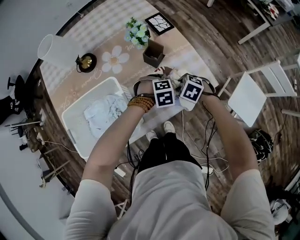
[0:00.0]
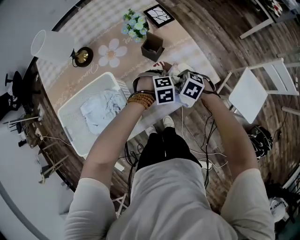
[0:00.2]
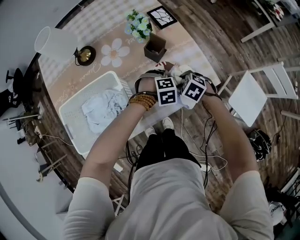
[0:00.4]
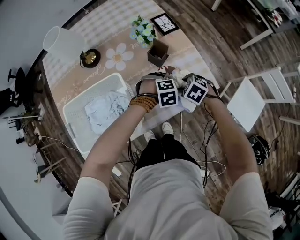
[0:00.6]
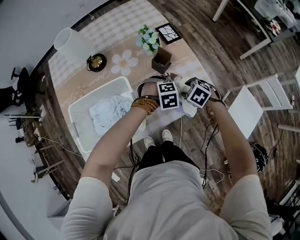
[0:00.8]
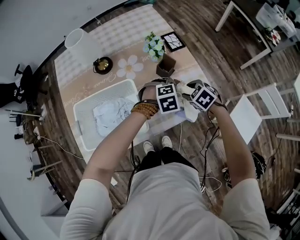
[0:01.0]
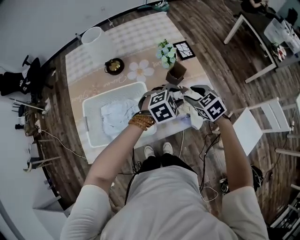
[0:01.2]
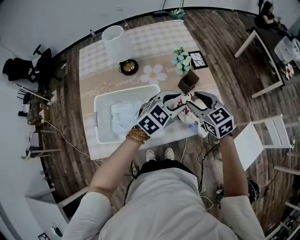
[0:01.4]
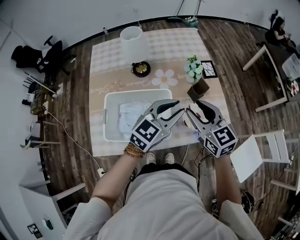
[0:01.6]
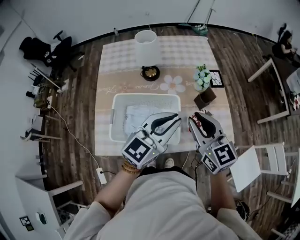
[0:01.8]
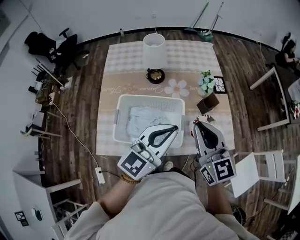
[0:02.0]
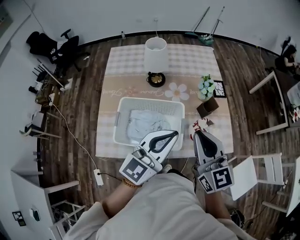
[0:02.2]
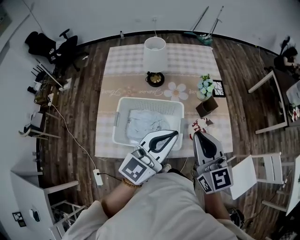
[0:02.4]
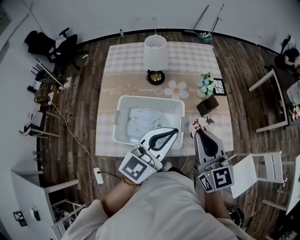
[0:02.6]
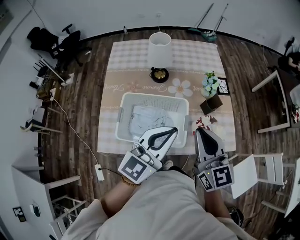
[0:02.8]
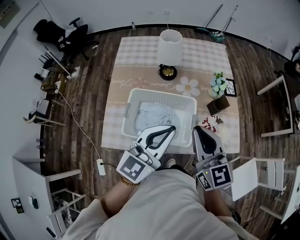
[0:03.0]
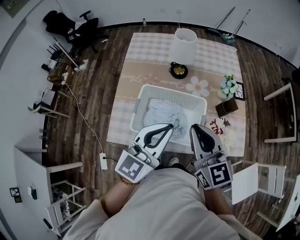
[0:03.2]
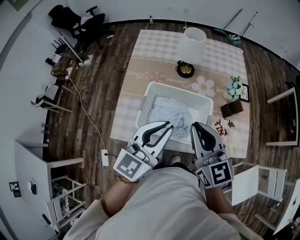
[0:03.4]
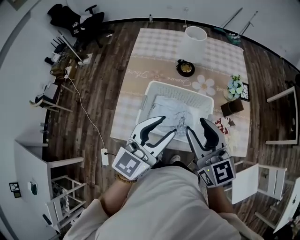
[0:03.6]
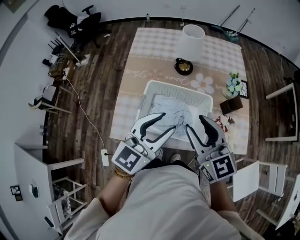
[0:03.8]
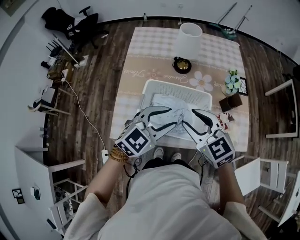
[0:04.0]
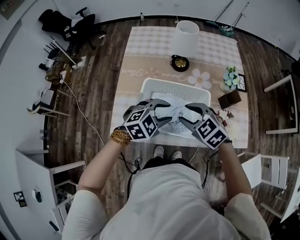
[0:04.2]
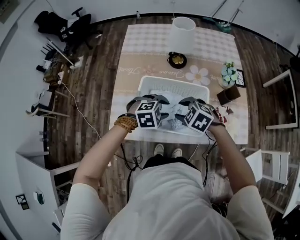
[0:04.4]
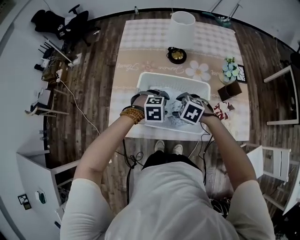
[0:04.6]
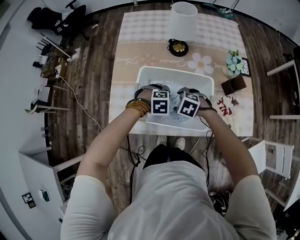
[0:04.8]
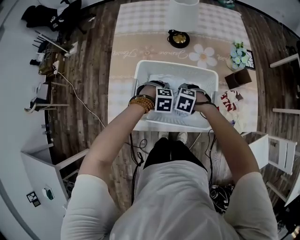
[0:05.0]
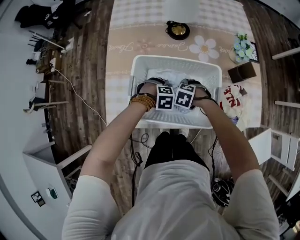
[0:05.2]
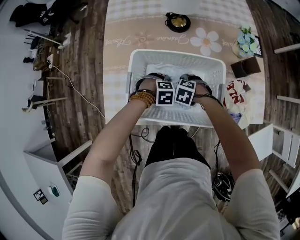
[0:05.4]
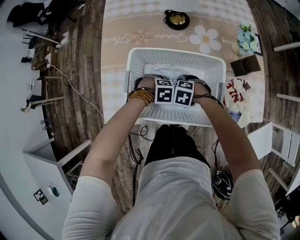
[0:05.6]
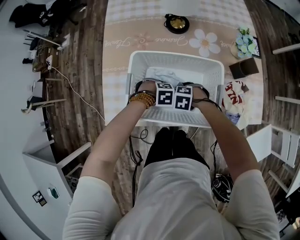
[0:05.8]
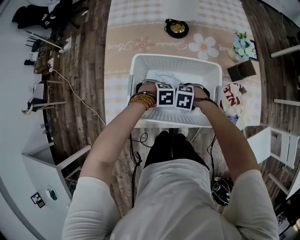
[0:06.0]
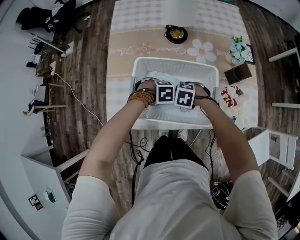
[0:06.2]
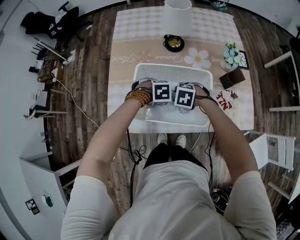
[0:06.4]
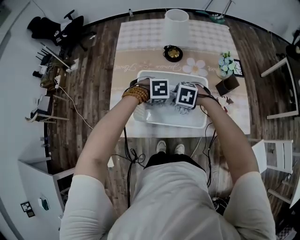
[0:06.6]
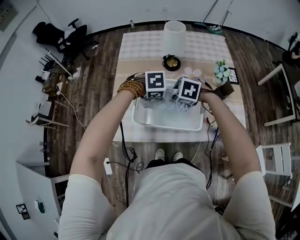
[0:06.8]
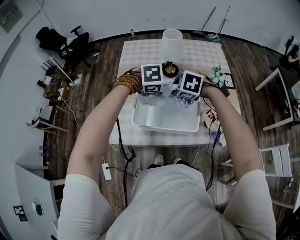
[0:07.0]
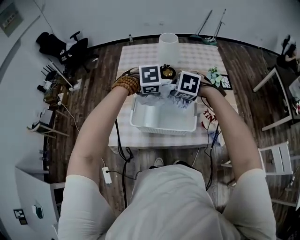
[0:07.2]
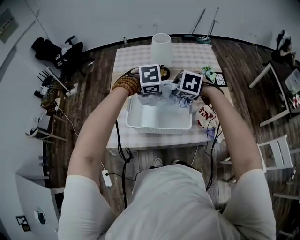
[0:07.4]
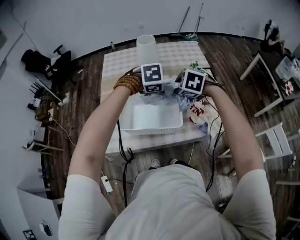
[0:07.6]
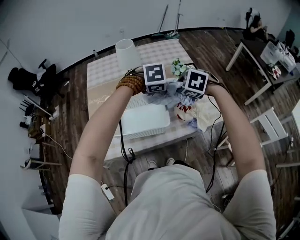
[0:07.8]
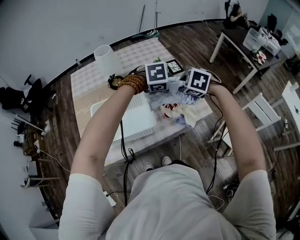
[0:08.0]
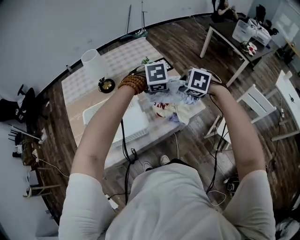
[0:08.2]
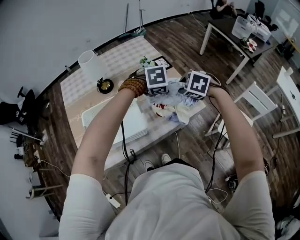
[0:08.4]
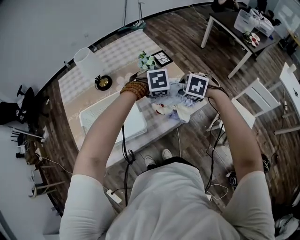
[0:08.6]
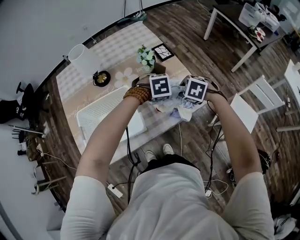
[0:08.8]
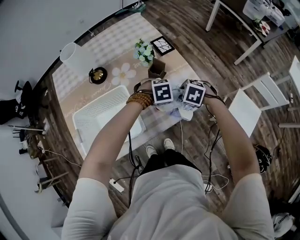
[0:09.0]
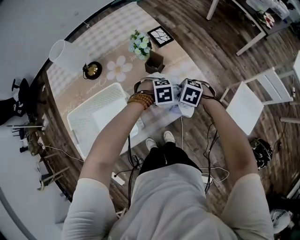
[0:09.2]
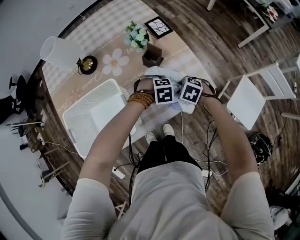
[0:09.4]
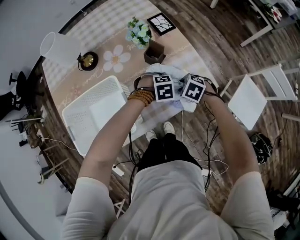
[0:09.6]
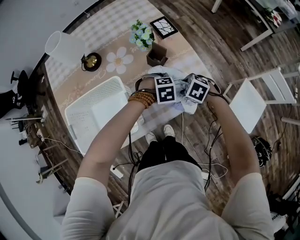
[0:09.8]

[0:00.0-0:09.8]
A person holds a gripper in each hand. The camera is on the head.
0:00.0 to 0:01.4: Both grippers move upward, roughly 25 cm. The left gripper points its fingers some 50 degrees further upward. Meanwhile the right gripper tilts its fingers about 40 degrees upward.
0:01.4 to 0:02.8: The left gripper goes approximately 25 cm to the left, upward and backward, rotates roughly 40 degrees, and closes its fingers; the right gripper is displaced upward, to the left and backward by roughly 20 cm, changes its angle by some 30 degrees, and closes.
0:02.8 to 0:04.2: The right gripper goes roughly 20 cm to the left and downward, angles its fingers downward, by approximately 40 degrees, and opens; the left gripper heads downward and to the left, covering roughly 20 cm, angles its fingers downward, by some 40 degrees, and opens up.
0:04.2 to 0:05.6: The grippers both shift downward by roughly 30 cm. The left gripper points its fingers approximately 30 degrees further downward. Meanwhile the right gripper tips its fingers downward by roughly 30 degrees, and opens its fingers.
0:05.6 to 0:07.0: The grippers both shift upward by some 30 cm. The left gripper closes. The right gripper closes.
0:07.0 to 0:08.4: The right gripper moves approximately 35 cm, and changes its angle by roughly 30 degrees. The left gripper shifts by about 35 cm, and changes its angle by roughly 30 degrees.
0:08.4 to 0:09.8: The two grippers go approximately 25 cm downward.

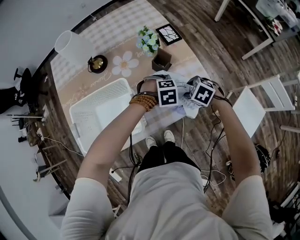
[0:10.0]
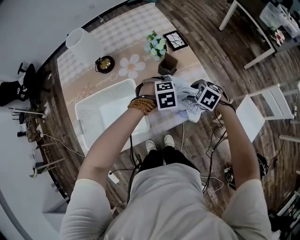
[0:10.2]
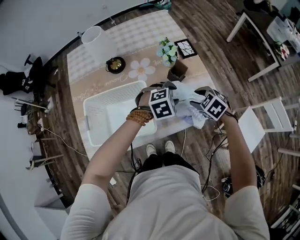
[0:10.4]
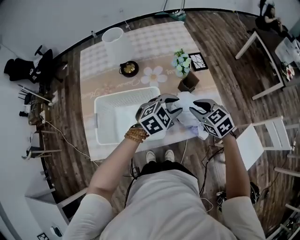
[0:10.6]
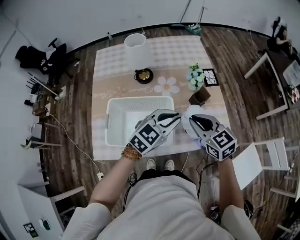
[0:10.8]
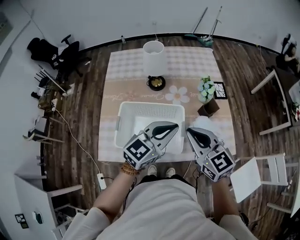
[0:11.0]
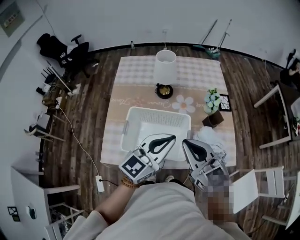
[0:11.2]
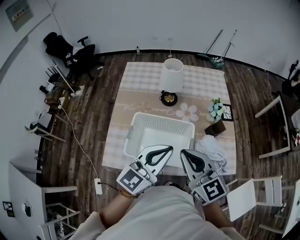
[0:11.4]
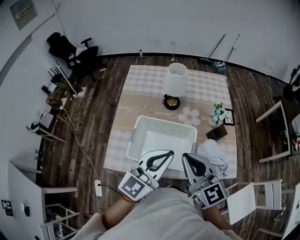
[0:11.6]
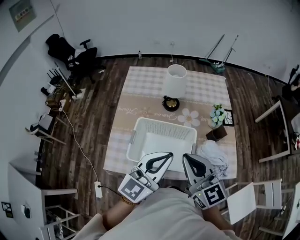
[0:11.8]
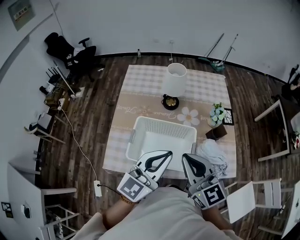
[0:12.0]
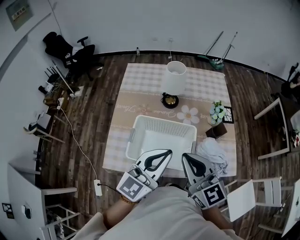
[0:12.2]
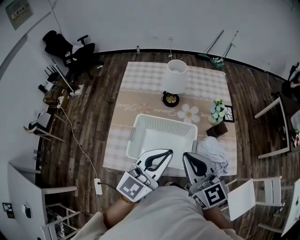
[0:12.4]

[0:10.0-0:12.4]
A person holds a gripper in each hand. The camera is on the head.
0:10.0 to 0:11.2: The grippers both shift upward by roughly 30 cm. The left gripper angles its fingers upward, by some 80 degrees, and closes up. Meanwhile the right gripper points its fingers some 60 degrees further upward, and closes up.
0:11.2 to 0:12.4: The left gripper travels to the left by roughly 5 cm.

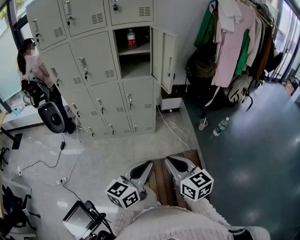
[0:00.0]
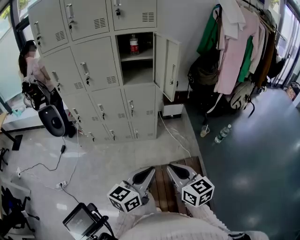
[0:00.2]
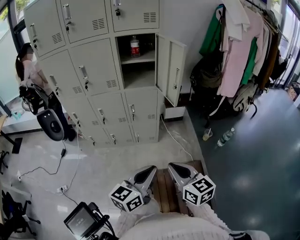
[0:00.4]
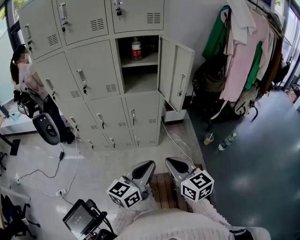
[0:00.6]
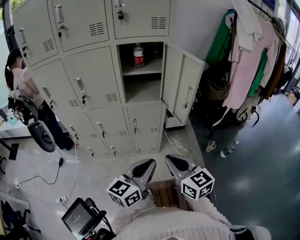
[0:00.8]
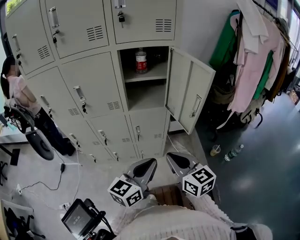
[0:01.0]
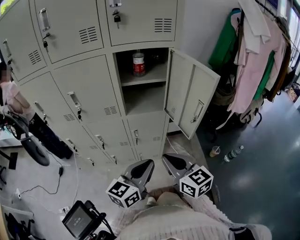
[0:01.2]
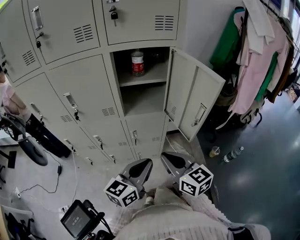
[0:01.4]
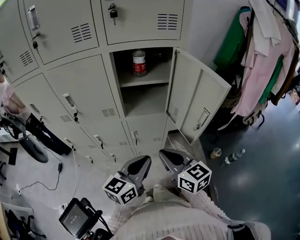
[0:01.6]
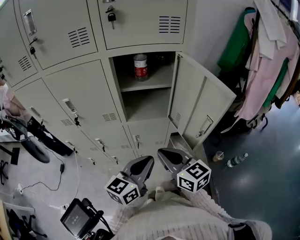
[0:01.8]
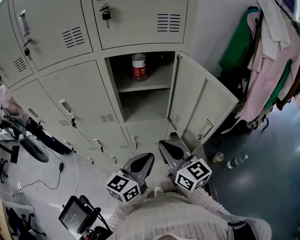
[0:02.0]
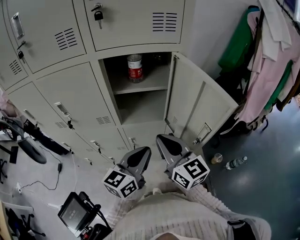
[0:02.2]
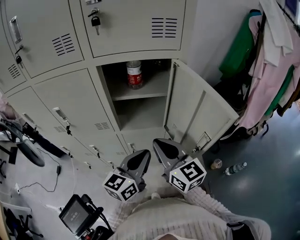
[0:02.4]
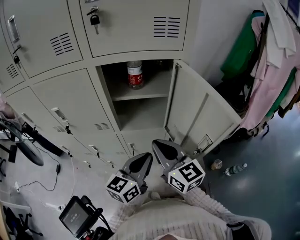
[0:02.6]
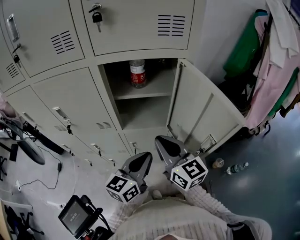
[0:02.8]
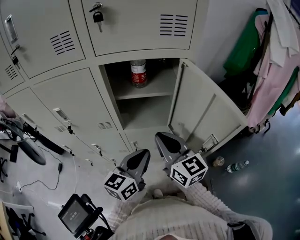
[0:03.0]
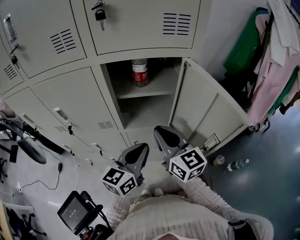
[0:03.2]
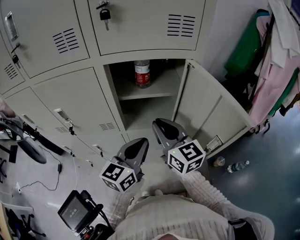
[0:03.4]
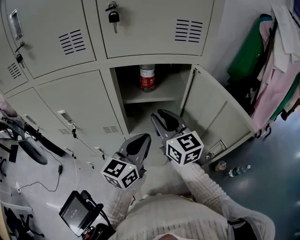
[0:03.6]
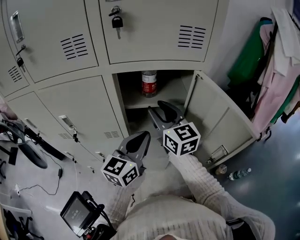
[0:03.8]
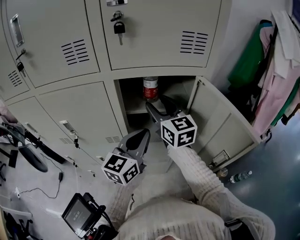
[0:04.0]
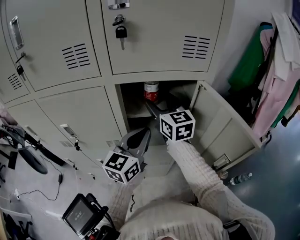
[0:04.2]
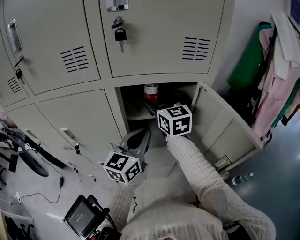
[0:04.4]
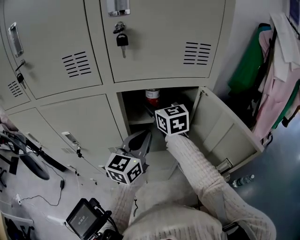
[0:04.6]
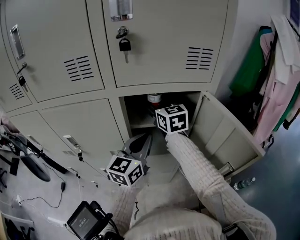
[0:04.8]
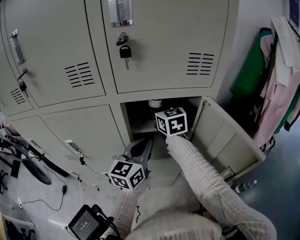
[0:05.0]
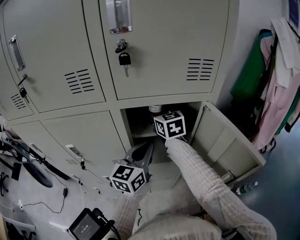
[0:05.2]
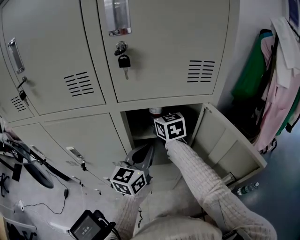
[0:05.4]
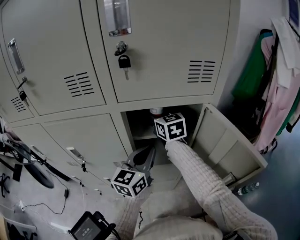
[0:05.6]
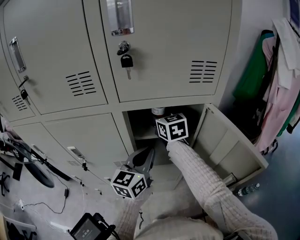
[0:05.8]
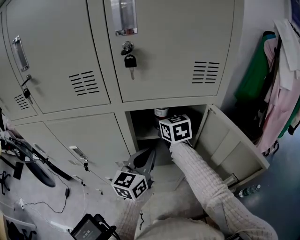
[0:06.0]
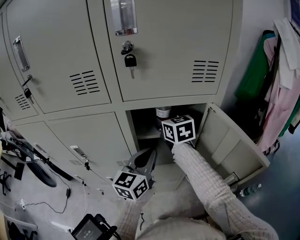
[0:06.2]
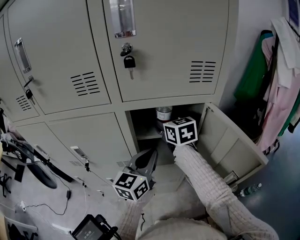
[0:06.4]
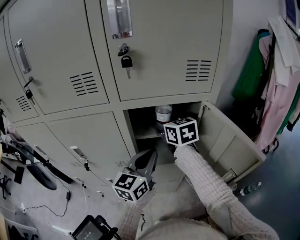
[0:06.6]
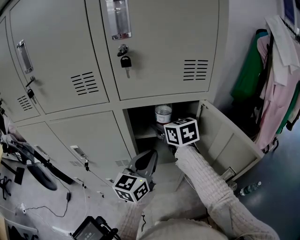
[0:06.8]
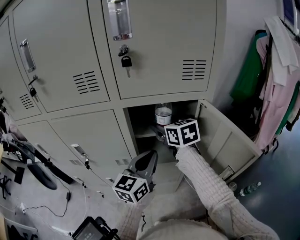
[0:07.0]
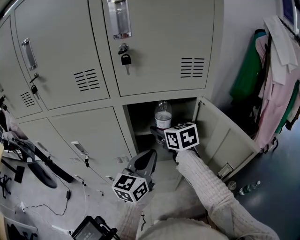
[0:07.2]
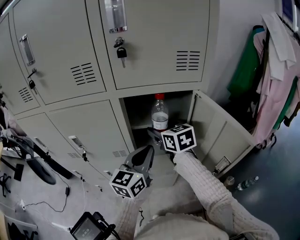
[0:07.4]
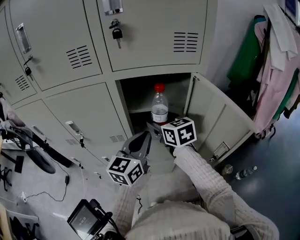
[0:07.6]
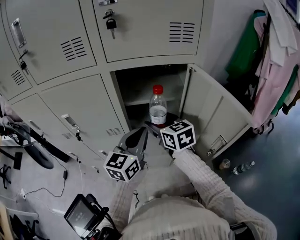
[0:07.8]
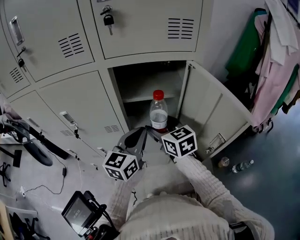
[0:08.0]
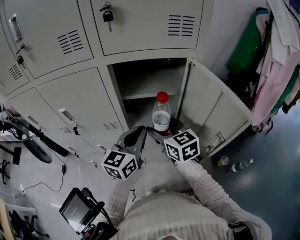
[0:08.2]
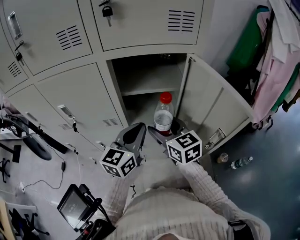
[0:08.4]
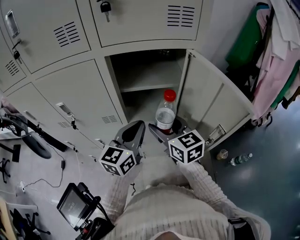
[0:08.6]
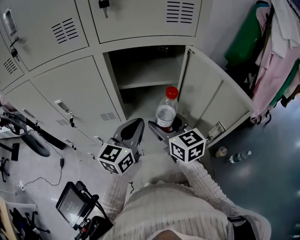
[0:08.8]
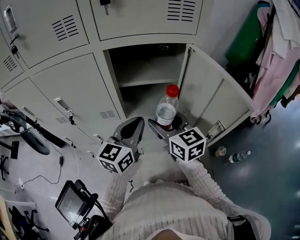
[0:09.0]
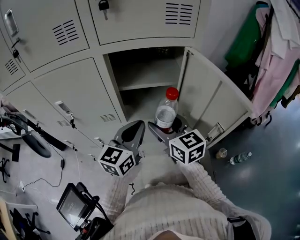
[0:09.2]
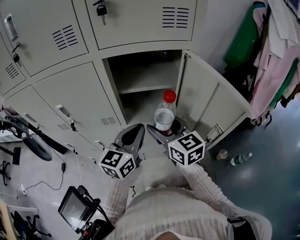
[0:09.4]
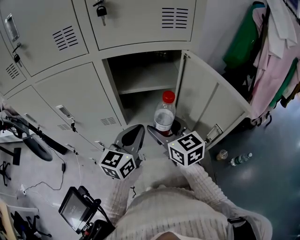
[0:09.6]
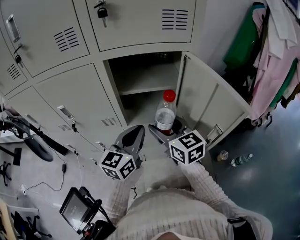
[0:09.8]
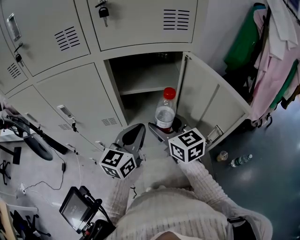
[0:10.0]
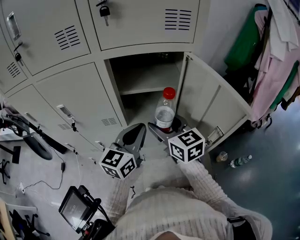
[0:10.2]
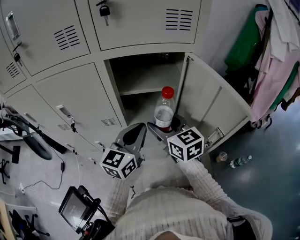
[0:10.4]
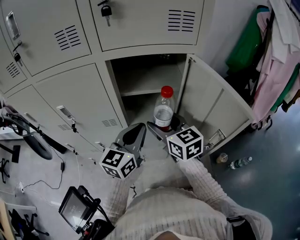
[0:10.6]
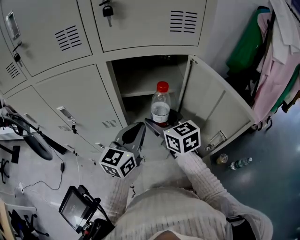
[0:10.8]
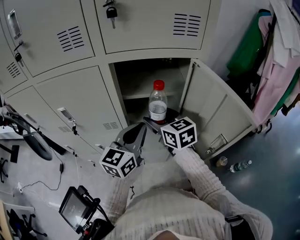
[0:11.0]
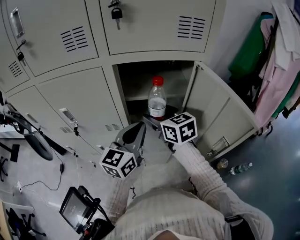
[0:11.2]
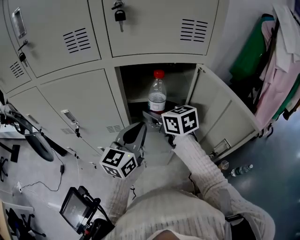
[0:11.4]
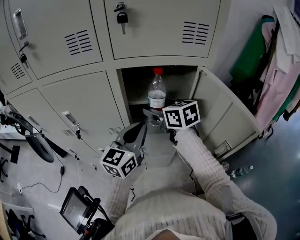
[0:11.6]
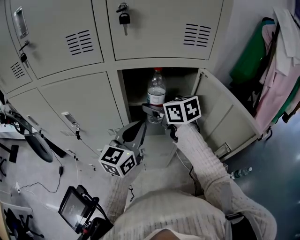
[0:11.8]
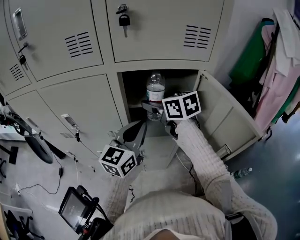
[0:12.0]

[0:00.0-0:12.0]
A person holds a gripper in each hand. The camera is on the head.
0:00.0 to 0:01.6: Both grippers are carried forward, roughly 40 cm.
0:01.6 to 0:03.0: Both grippers travel together forward, approximately 15 cm.
0:03.0 to 0:04.4: The left gripper moves forward and upward, some 15 cm; the right gripper moves forward, some 25 cm, and opens up.
0:04.4 to 0:06.0: The right gripper changes place by approximately 5 cm.
0:06.0 to 0:07.6: The left gripper shifts roughly 5 cm backward, while the right gripper travels backward and downward by about 15 cm.
0:07.6 to 0:09.0: The right gripper heads backward, covering roughly 10 cm.
0:09.0 to 0:10.4: The grippers make only small movements.
0:10.4 to 0:12.0: The right gripper heads forward and upward, covering some 15 cm. The left gripper heads forward, covering approximately 5 cm.
